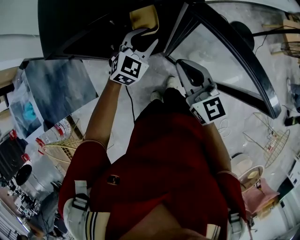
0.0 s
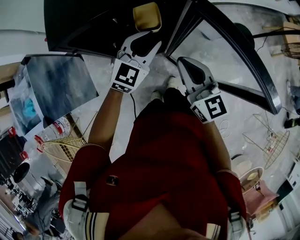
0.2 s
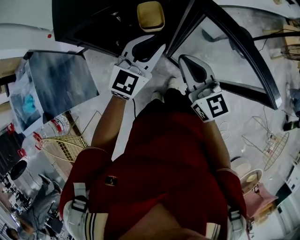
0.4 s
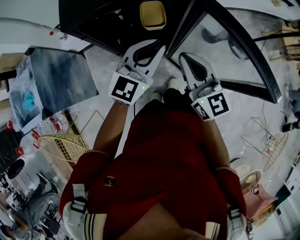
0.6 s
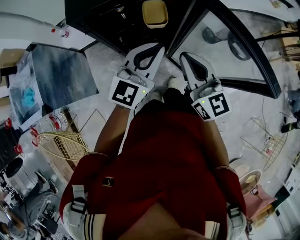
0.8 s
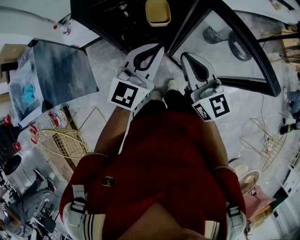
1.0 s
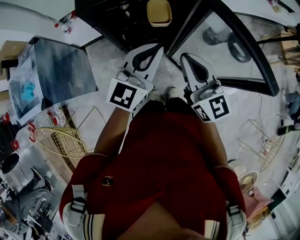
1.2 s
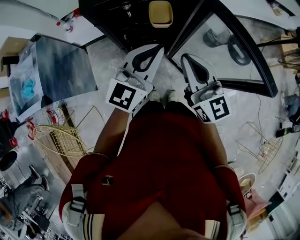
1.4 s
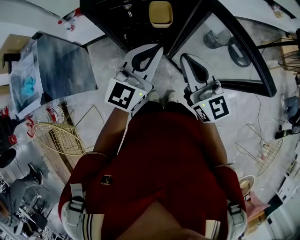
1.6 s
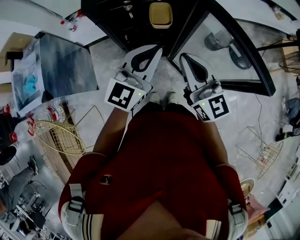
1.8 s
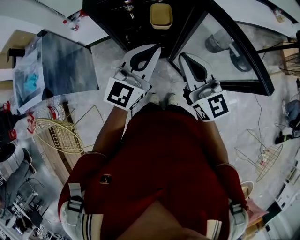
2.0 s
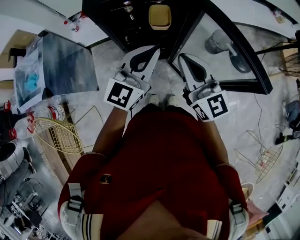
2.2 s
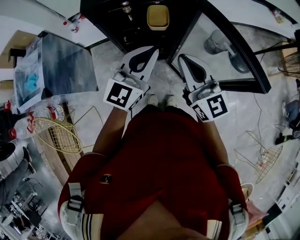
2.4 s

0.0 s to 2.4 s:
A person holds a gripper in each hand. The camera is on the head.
0.0 to 1.2 s: The left gripper moves backward and upward, roughly 20 cm, changes its angle by about 30 degrees, and closes; the right gripper is displaced backward and upward by roughly 10 cm.
1.2 to 2.4 s: The right gripper moves some 5 cm.

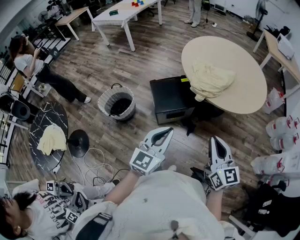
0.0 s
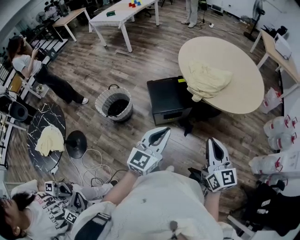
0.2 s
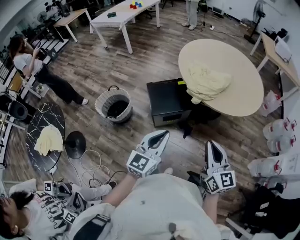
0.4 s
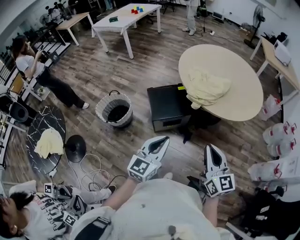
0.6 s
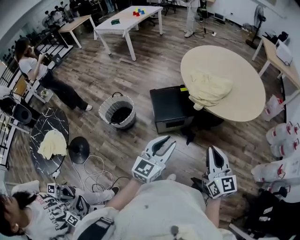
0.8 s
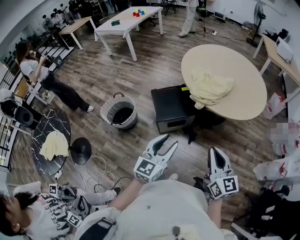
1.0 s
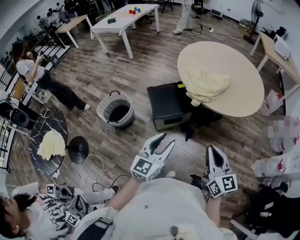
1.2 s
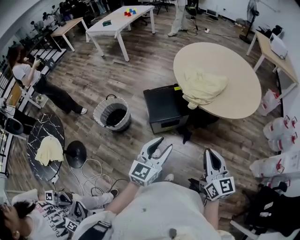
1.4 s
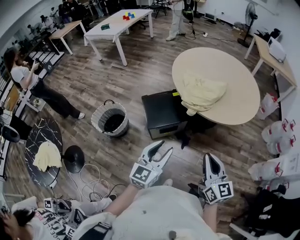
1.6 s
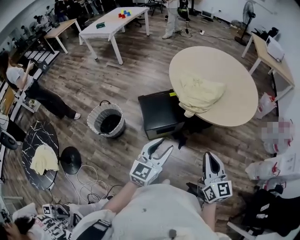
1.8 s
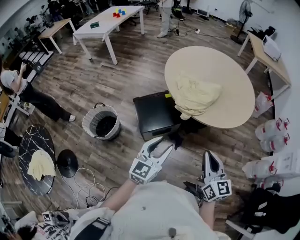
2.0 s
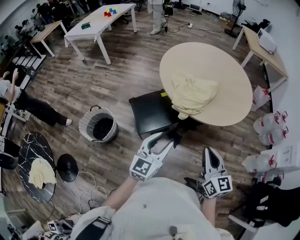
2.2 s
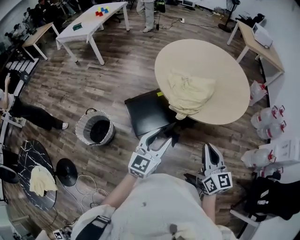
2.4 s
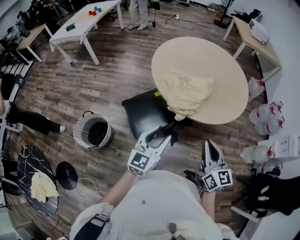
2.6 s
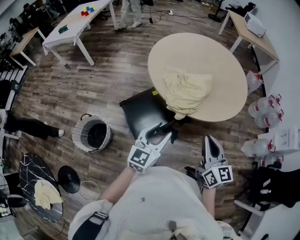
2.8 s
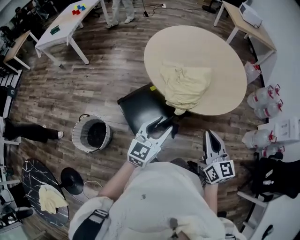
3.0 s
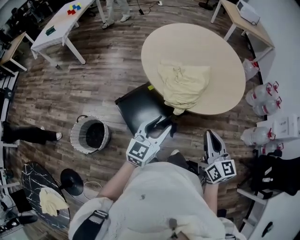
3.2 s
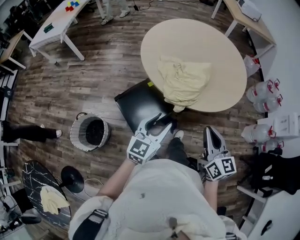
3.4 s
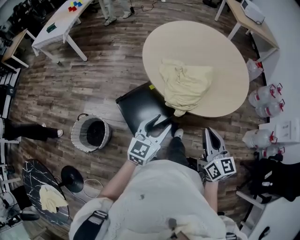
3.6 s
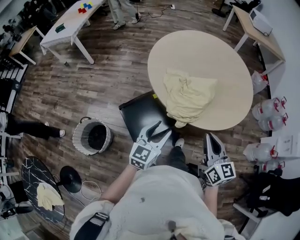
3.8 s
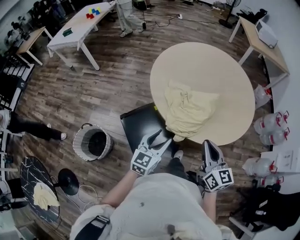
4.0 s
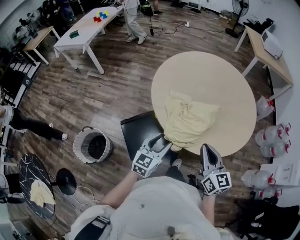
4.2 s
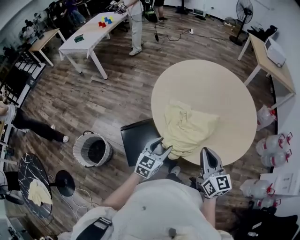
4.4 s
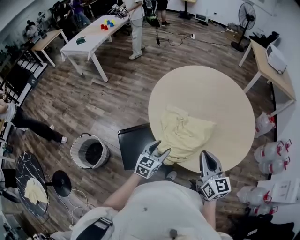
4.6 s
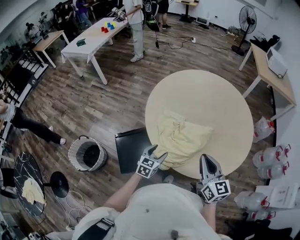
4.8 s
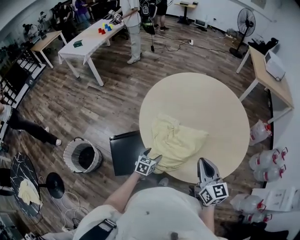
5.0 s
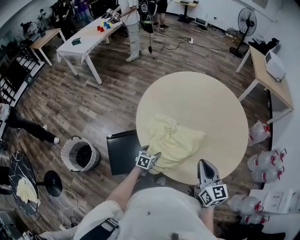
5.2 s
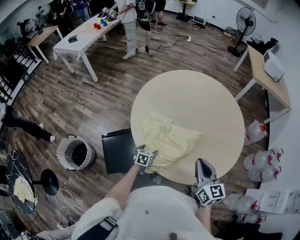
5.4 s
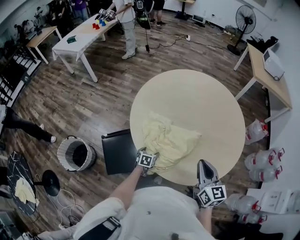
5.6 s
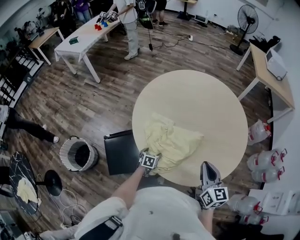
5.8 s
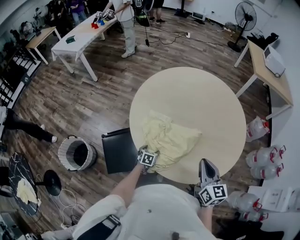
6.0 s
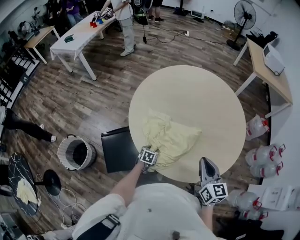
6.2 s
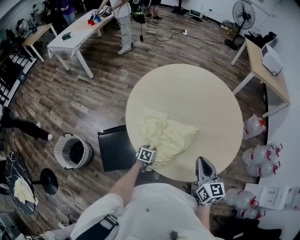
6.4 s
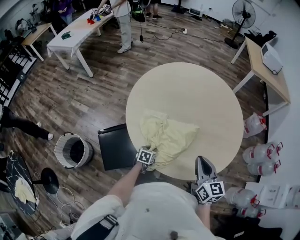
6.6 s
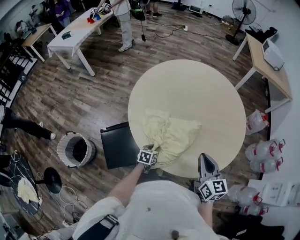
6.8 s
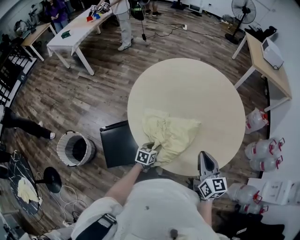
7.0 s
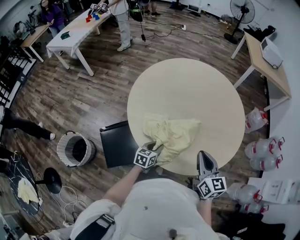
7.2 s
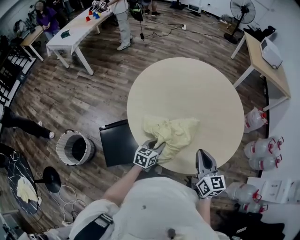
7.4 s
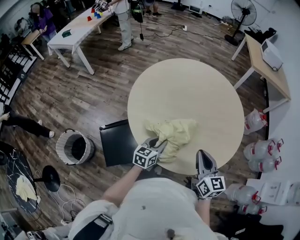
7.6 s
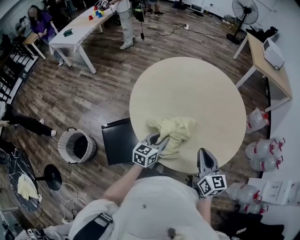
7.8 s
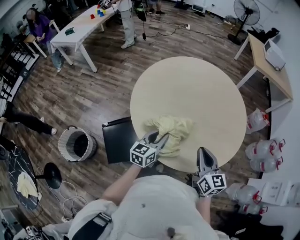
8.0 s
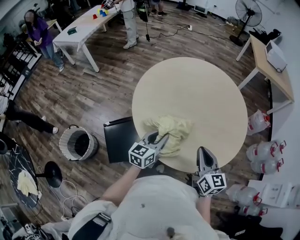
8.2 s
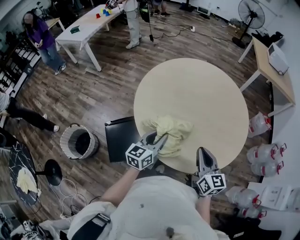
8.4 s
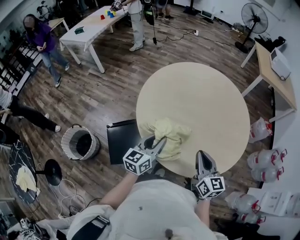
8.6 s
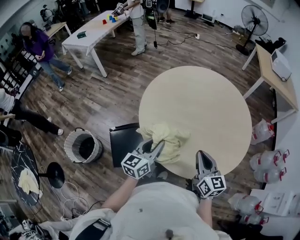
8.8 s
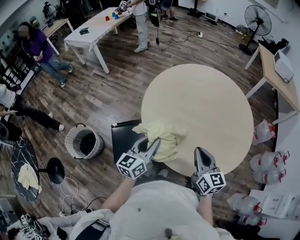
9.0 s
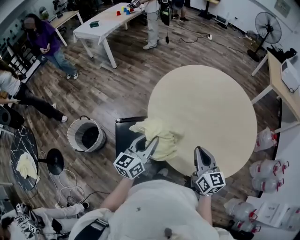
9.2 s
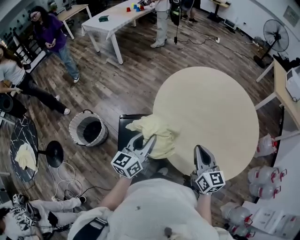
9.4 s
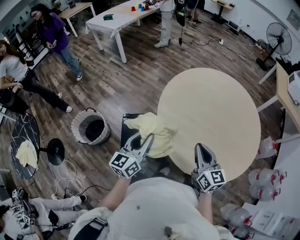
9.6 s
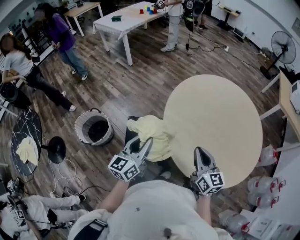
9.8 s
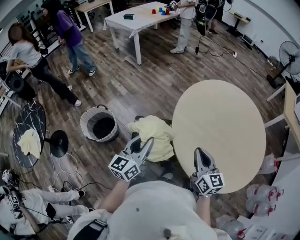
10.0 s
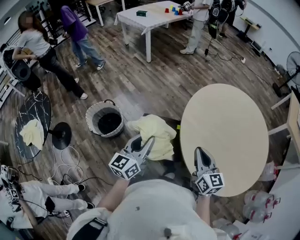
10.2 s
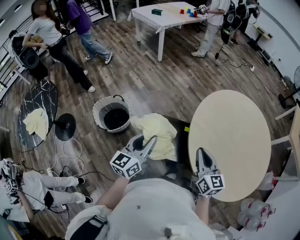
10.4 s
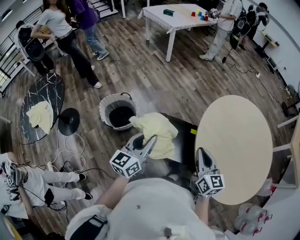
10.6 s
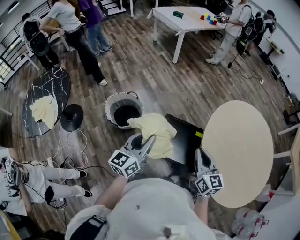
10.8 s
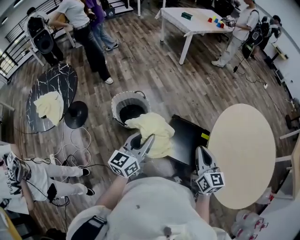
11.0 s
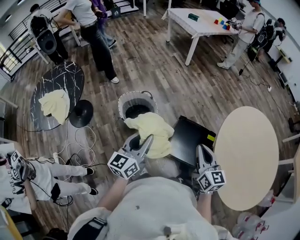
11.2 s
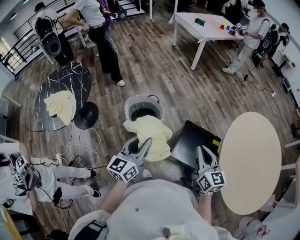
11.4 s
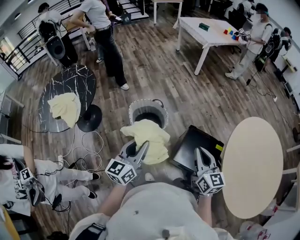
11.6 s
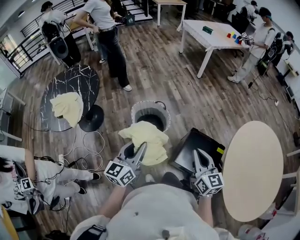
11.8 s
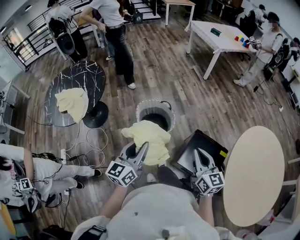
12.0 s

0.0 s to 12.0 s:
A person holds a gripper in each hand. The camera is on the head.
0.0 to 1.6 s: The left gripper ends up about 5 cm from where it was, and opens.
1.6 to 3.0 s: The grippers both shift forward by about 30 cm. The left gripper rotates approximately 20 degrees.
3.0 to 4.4 s: Both grippers travel together forward, approximately 25 cm.
4.4 to 6.0 s: The right gripper heads to the right and forward, covering roughly 20 cm, while the left gripper shifts about 30 cm downward and forward, tips its fingers downward by about 30 degrees, and opens.
6.0 to 7.6 s: The left gripper shifts some 20 cm upward, tips its fingers upward by some 30 degrees, and closes up.
7.6 to 9.0 s: The right gripper travels to the left by roughly 5 cm. Meanwhile the left gripper travels upward and to the left by some 15 cm, and changes its angle by some 20 degrees.
9.0 to 10.4 s: The two grippers go some 35 cm to the left. The right gripper swivels some 20 degrees, while the left gripper changes its angle by roughly 30 degrees.
10.4 to 12.0 s: The pair of grippers is taken approximately 50 cm. The left gripper turns by some 30 degrees. The right gripper changes its angle by some 30 degrees.

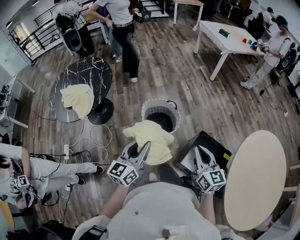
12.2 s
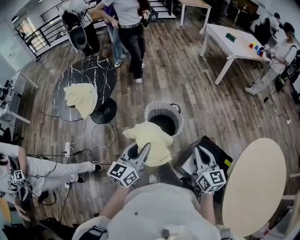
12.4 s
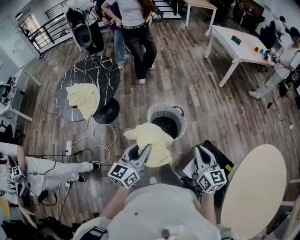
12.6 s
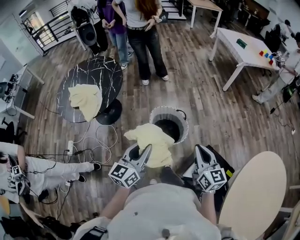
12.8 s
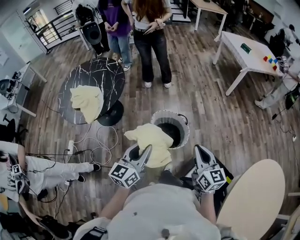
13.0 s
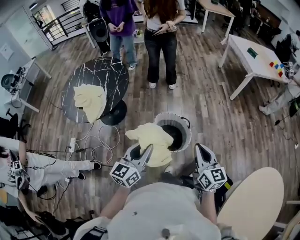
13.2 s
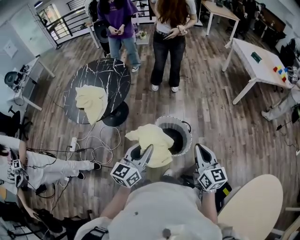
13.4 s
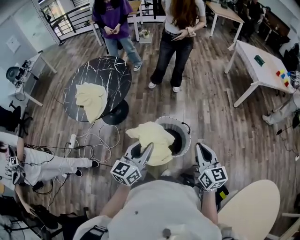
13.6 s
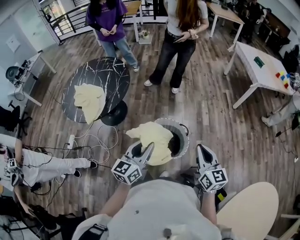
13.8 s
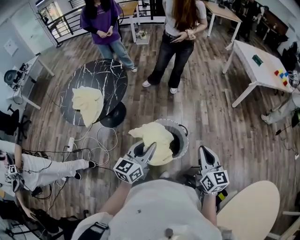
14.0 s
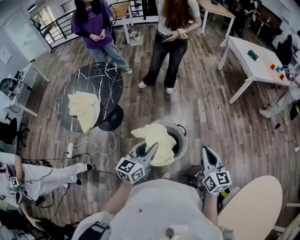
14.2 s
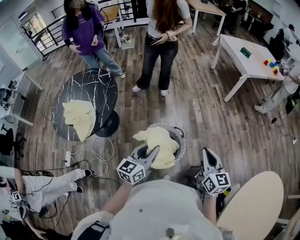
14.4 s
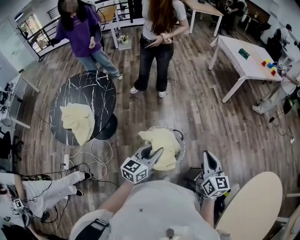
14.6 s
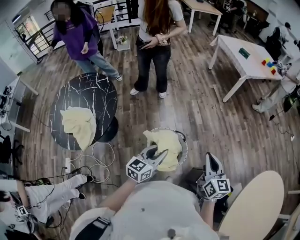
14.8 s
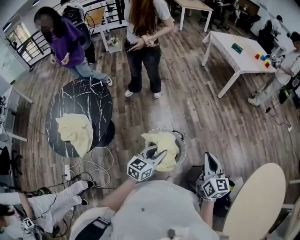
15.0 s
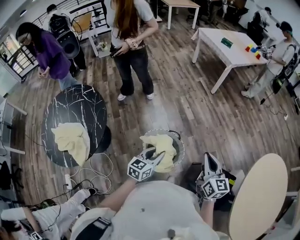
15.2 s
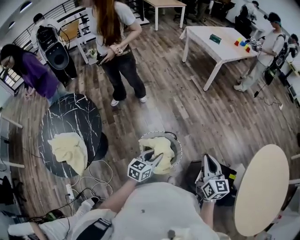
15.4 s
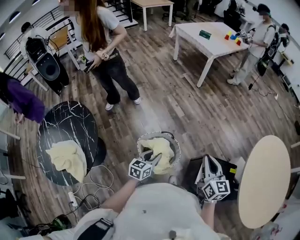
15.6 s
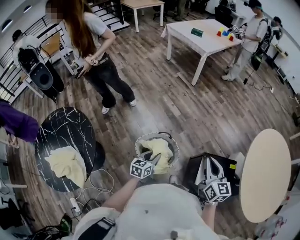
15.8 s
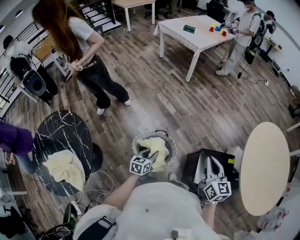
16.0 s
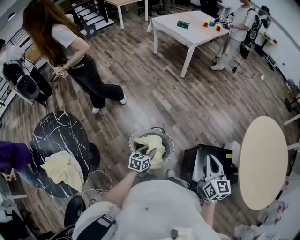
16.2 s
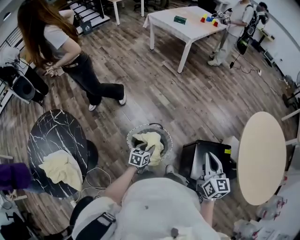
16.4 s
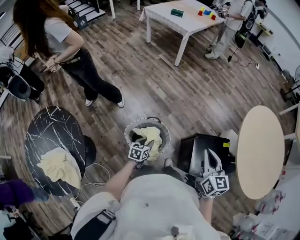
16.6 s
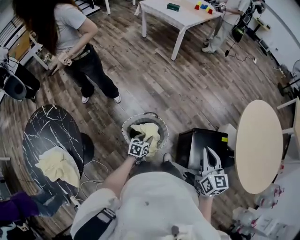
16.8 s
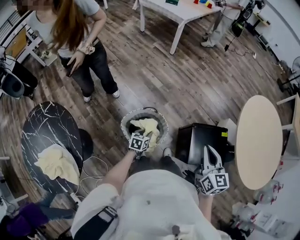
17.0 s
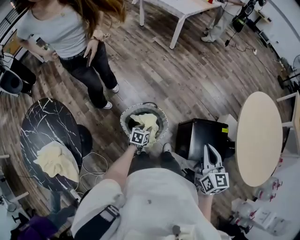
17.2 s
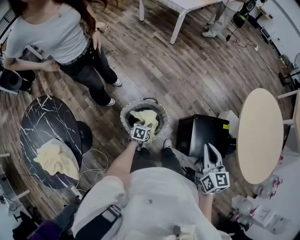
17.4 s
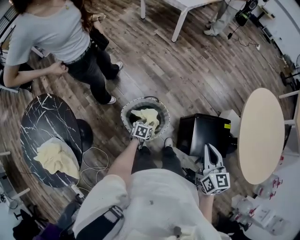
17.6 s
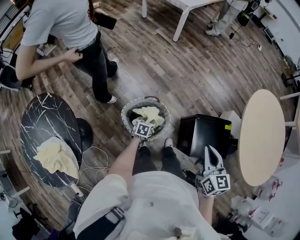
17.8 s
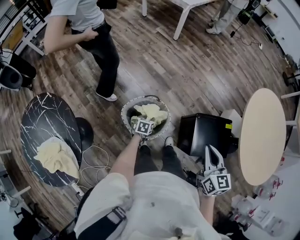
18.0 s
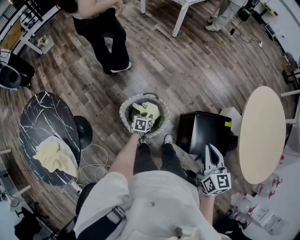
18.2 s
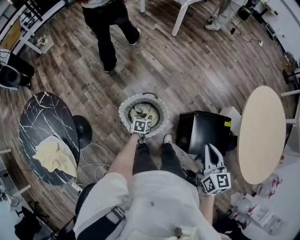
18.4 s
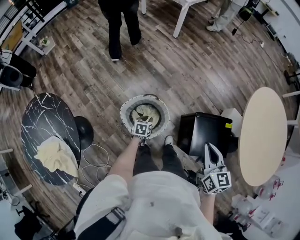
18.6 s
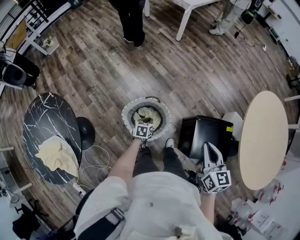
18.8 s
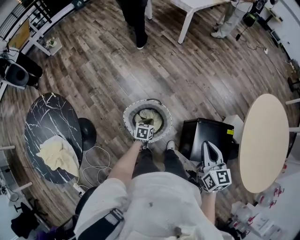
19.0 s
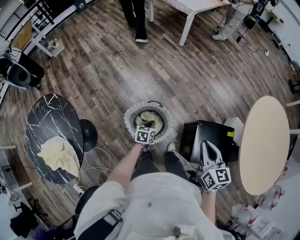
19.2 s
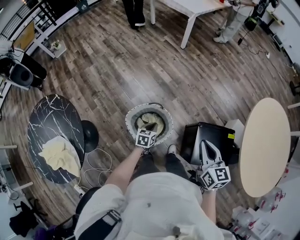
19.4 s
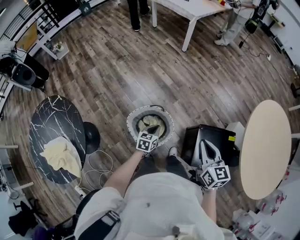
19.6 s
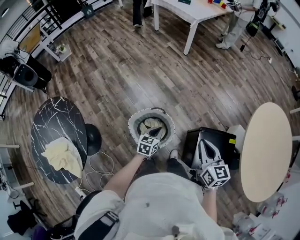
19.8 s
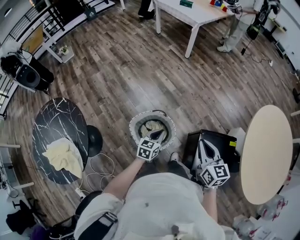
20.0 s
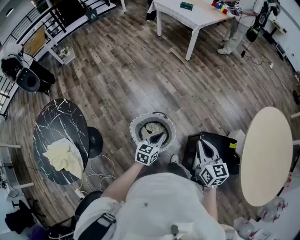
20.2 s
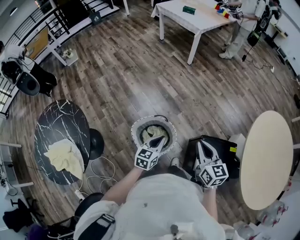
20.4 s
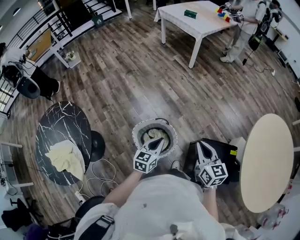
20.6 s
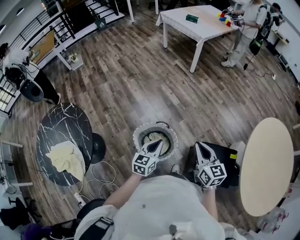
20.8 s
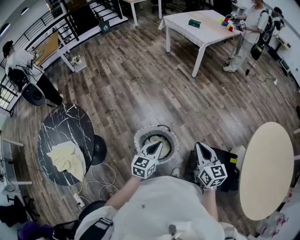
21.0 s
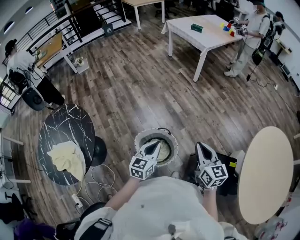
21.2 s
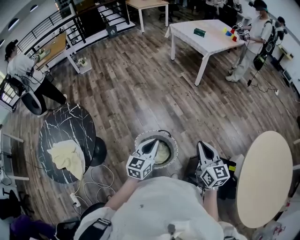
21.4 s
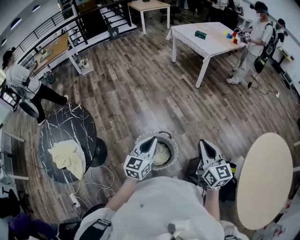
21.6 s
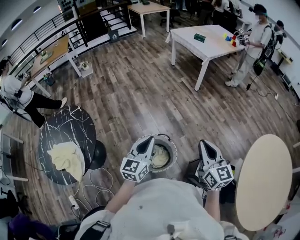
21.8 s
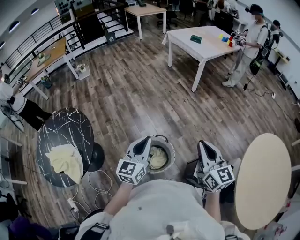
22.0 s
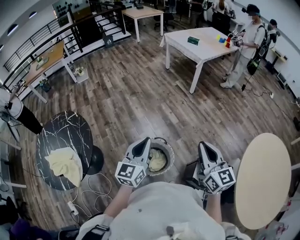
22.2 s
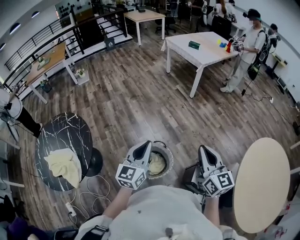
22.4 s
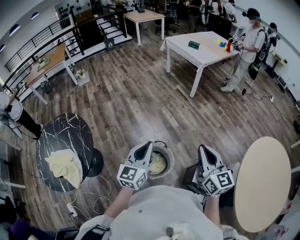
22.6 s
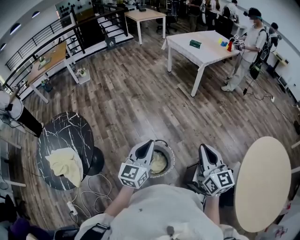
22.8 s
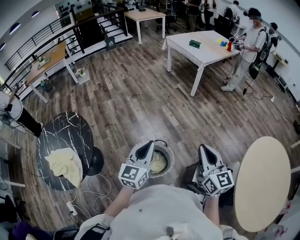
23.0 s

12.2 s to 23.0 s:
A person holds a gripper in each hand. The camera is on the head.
12.2 to 13.8 s: Both grippers move forward, approximately 30 cm.
13.8 to 15.2 s: The left gripper shifts by some 20 cm, and swivels about 40 degrees. The right gripper changes place by about 10 cm, and swivels approximately 30 degrees.
15.2 to 16.8 s: The right gripper goes about 5 cm to the right, and turns by roughly 20 degrees. The left gripper moves downward, roughly 20 cm, and turns by approximately 30 degrees.
16.8 to 18.4 s: The right gripper shifts roughly 5 cm downward. The left gripper goes some 15 cm downward and forward.
18.4 to 20.0 s: The right gripper moves roughly 5 cm. Meanwhile the left gripper goes about 20 cm upward, and rotates some 20 degrees.
20.0 to 21.4 s: The left gripper moves upward, some 20 cm, and swivels roughly 20 degrees. The right gripper is displaced upward by about 10 cm.
21.4 to 23.0 s: The two grippers go approximately 10 cm upward.
